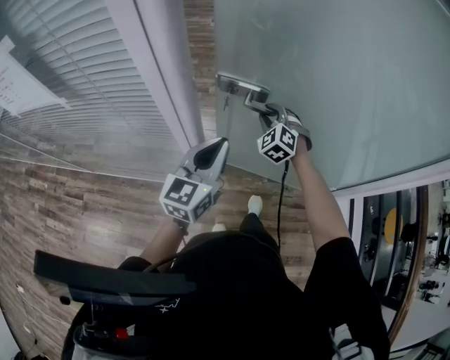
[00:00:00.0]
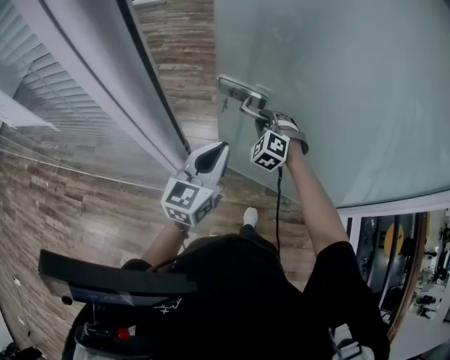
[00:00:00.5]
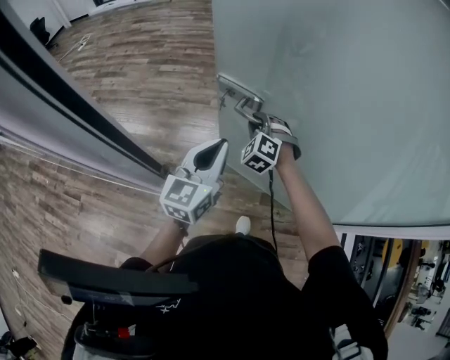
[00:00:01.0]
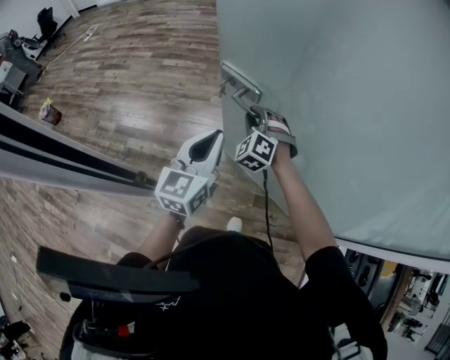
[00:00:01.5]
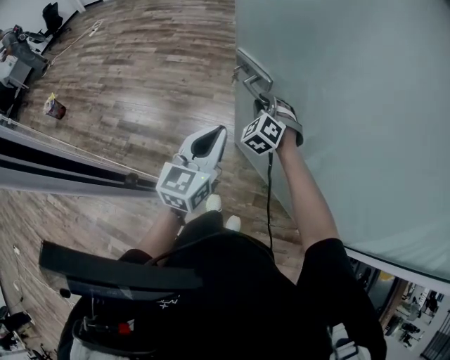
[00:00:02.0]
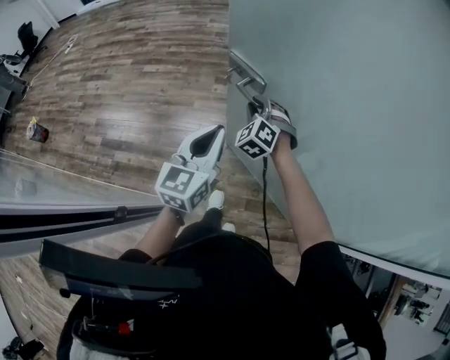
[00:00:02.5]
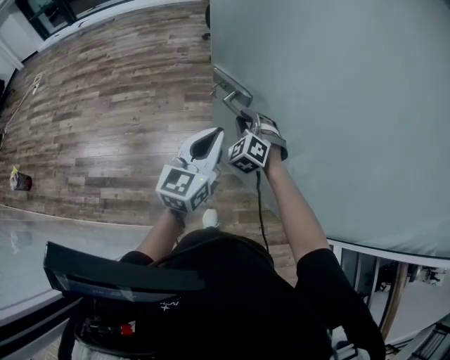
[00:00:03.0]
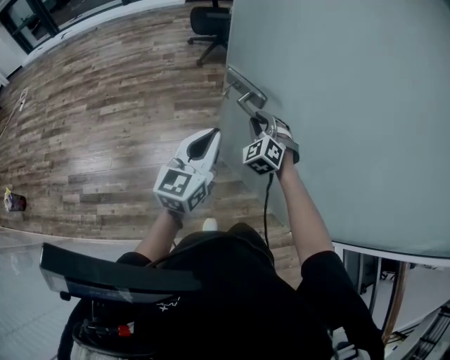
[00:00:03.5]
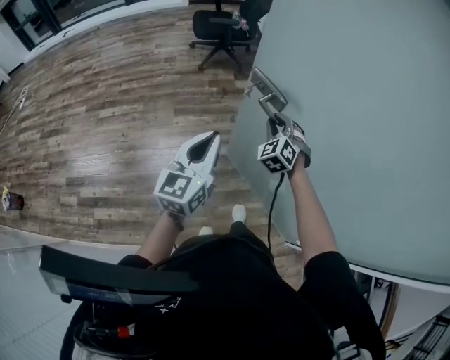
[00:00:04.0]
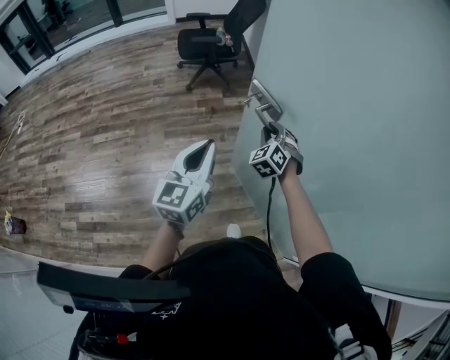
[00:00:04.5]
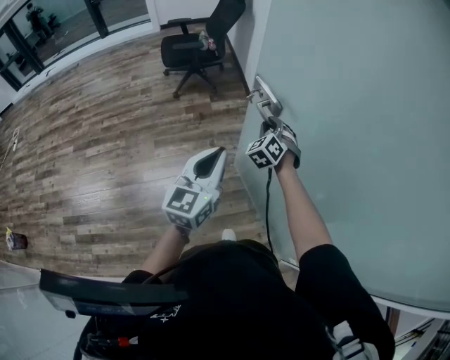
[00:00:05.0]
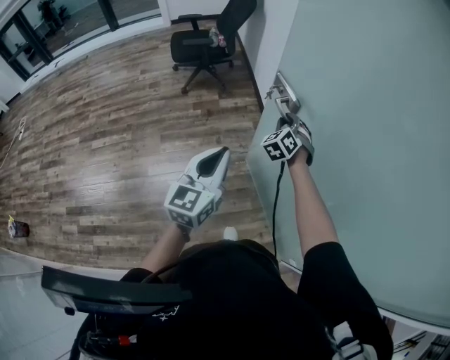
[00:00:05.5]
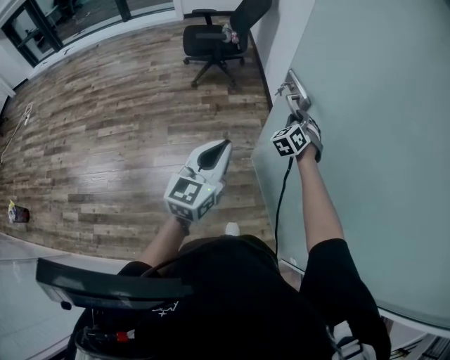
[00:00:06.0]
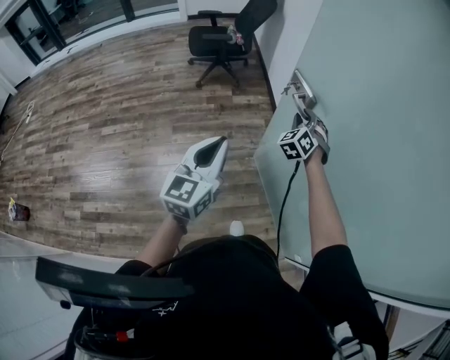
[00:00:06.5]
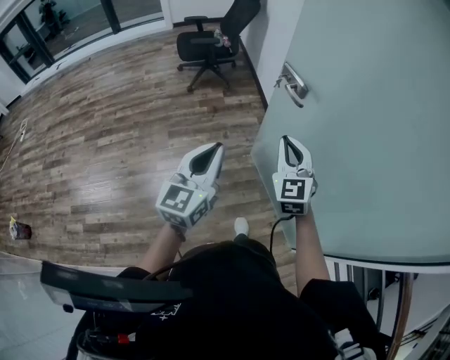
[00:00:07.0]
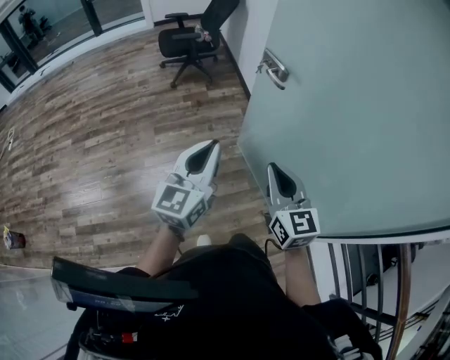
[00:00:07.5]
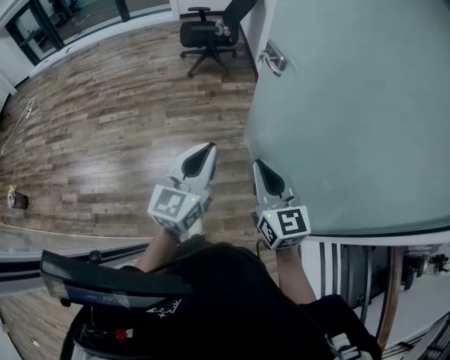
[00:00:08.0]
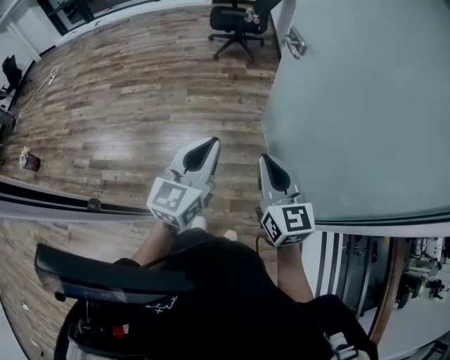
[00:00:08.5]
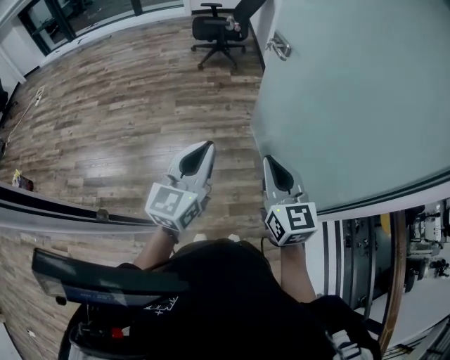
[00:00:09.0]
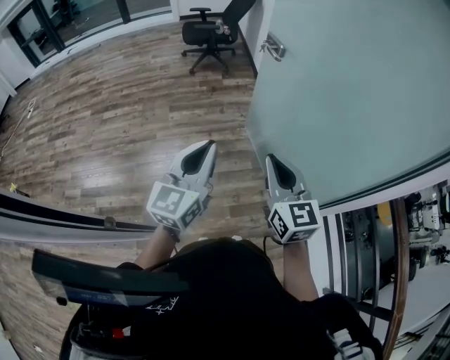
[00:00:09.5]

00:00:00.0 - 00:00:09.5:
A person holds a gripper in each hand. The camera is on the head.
00:00:00.0 - 00:00:02.0: The right gripper heads forward, covering roughly 20 cm. Meanwhile the left gripper shifts some 25 cm forward and to the right.
00:00:02.0 - 00:00:04.0: The left gripper shifts roughly 25 cm forward; the right gripper moves forward and to the right, approximately 25 cm, and rotates some 30 degrees.
00:00:04.0 - 00:00:05.5: The two grippers go about 20 cm forward and to the right.
00:00:05.5 - 00:00:07.5: The right gripper shifts about 40 cm backward, swivels about 60 degrees, and closes its fingers, while the left gripper heads backward, covering some 15 cm.
00:00:07.5 - 00:00:09.5: Both grippers travel together backward, some 20 cm.

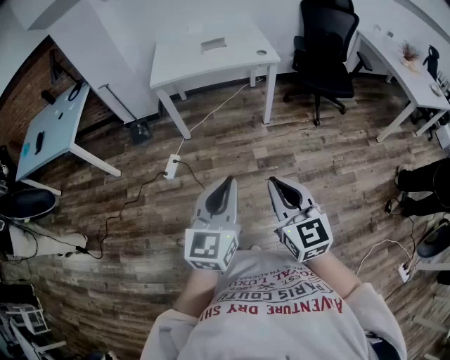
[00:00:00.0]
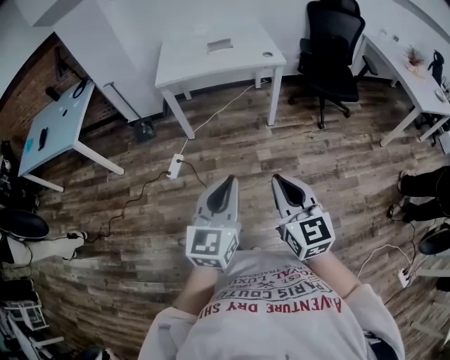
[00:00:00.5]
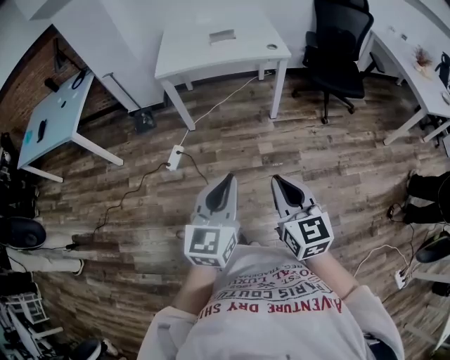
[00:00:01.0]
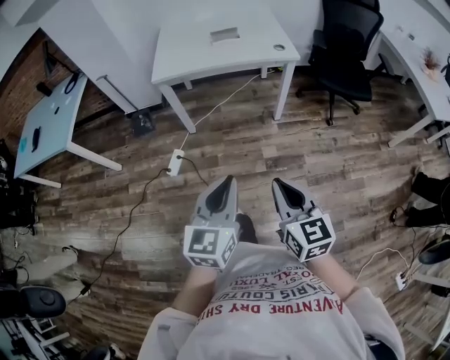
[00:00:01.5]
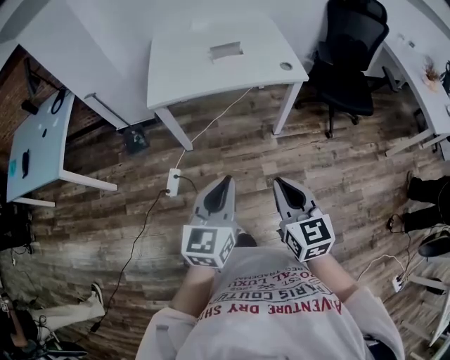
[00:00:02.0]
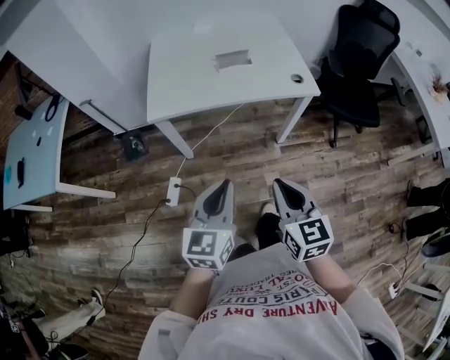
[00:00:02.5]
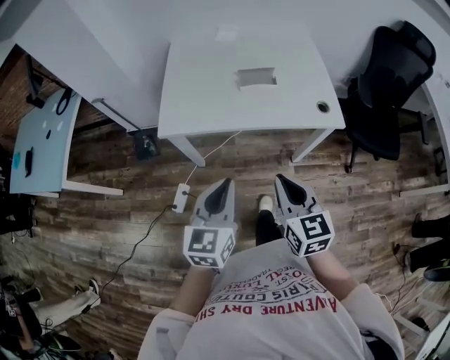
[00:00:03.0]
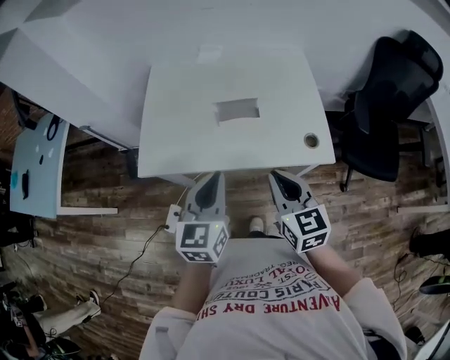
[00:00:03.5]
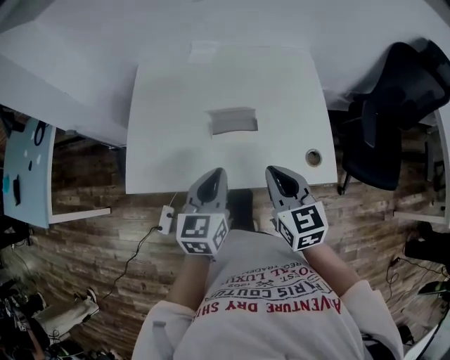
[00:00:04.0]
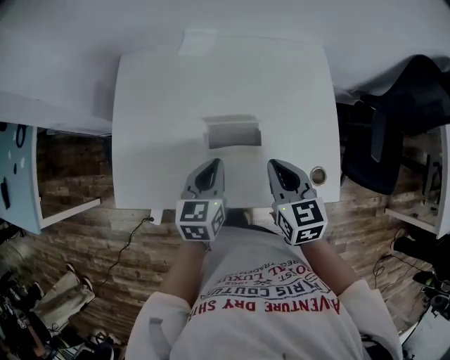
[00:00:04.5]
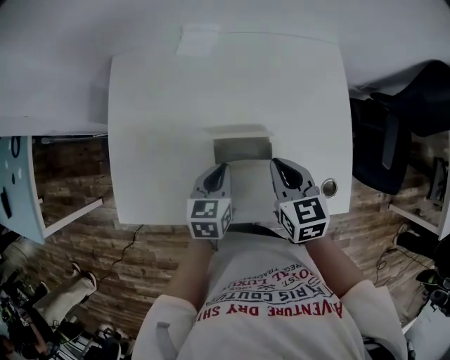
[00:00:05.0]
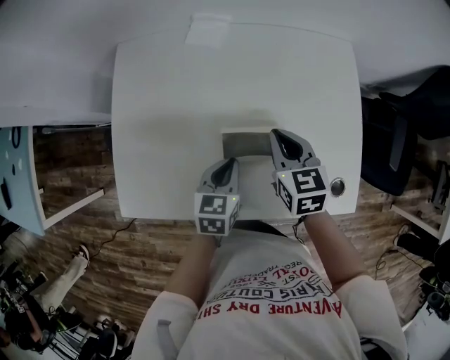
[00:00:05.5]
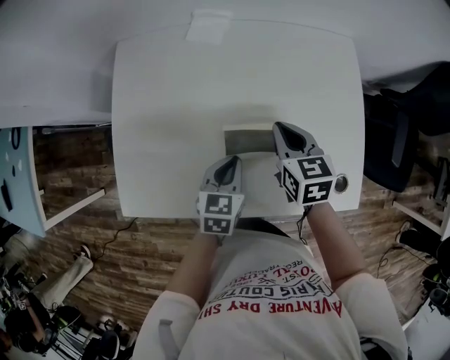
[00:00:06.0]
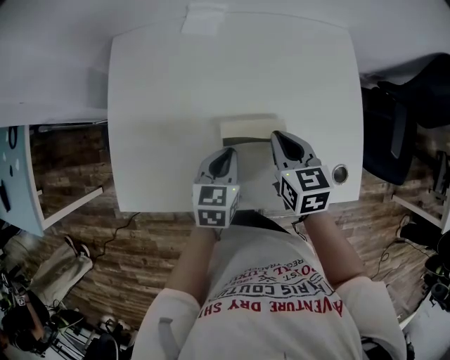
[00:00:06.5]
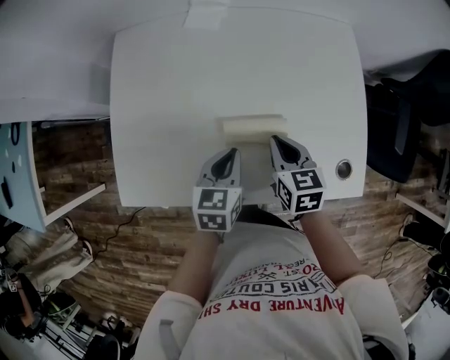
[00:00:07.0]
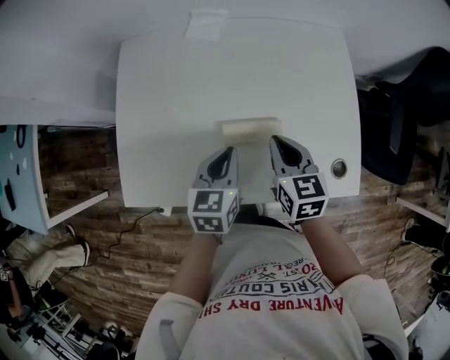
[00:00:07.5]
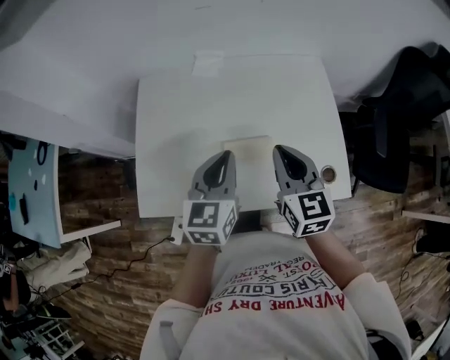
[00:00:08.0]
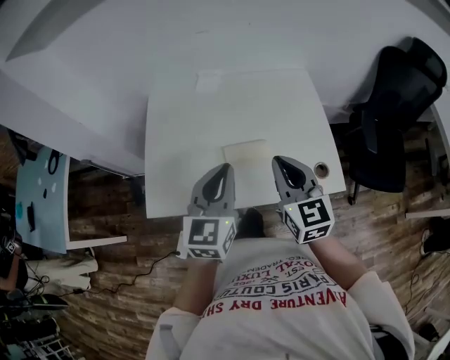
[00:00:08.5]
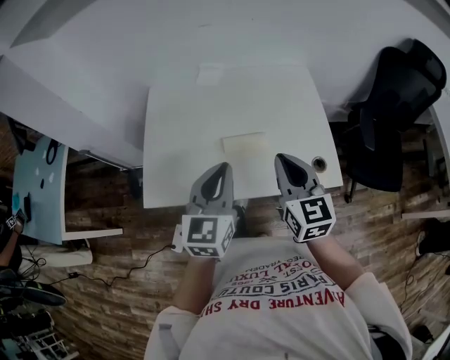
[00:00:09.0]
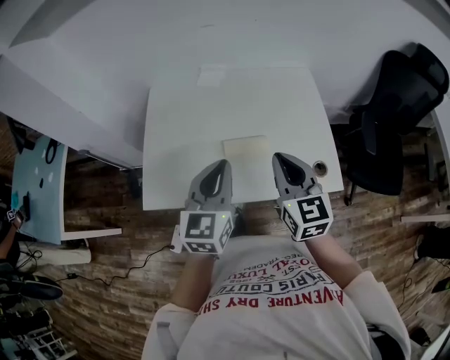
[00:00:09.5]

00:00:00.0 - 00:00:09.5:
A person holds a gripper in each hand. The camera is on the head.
00:00:00.0 - 00:00:02.0: Both grippers move forward, about 30 cm.
00:00:02.0 - 00:00:04.0: The pair of grippers is taken forward, some 50 cm.
00:00:04.0 - 00:00:05.5: The right gripper goes approximately 25 cm forward and downward, while the left gripper heads downward and forward, covering roughly 20 cm, and turns by approximately 20 degrees.
00:00:05.5 - 00:00:07.5: The left gripper moves upward, roughly 5 cm; the right gripper goes some 5 cm backward.
00:00:07.5 - 00:00:09.5: The right gripper heads upward and backward, covering approximately 20 cm, and turns by some 20 degrees. The left gripper goes roughly 20 cm upward, and changes its angle by some 30 degrees.

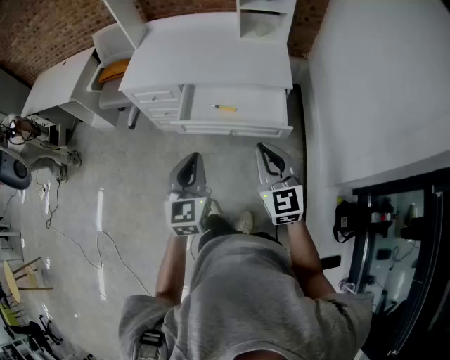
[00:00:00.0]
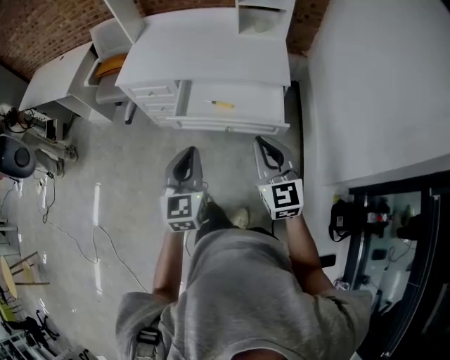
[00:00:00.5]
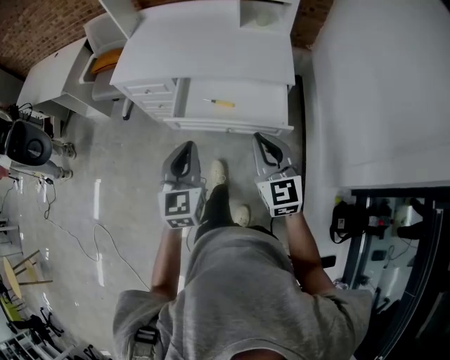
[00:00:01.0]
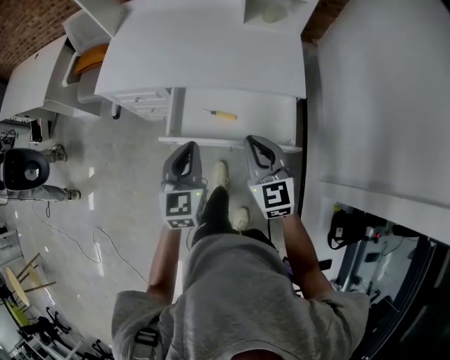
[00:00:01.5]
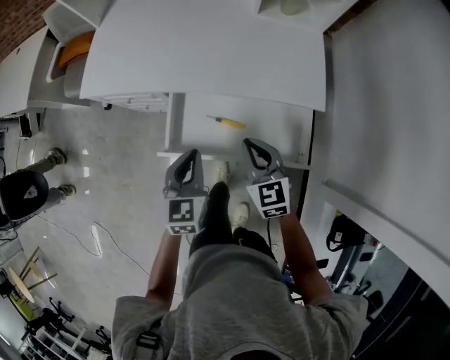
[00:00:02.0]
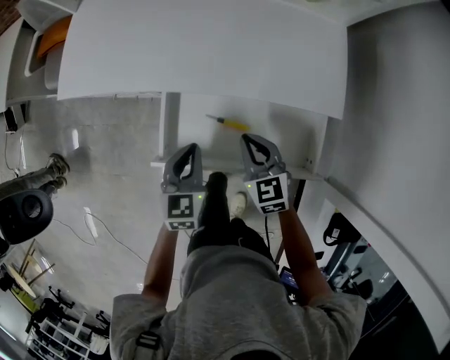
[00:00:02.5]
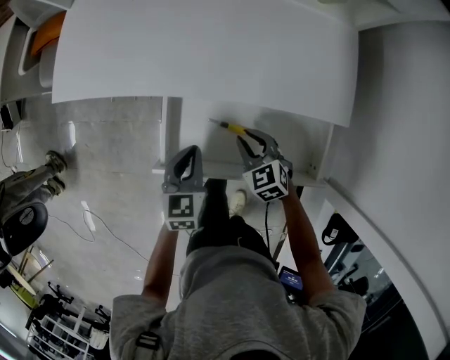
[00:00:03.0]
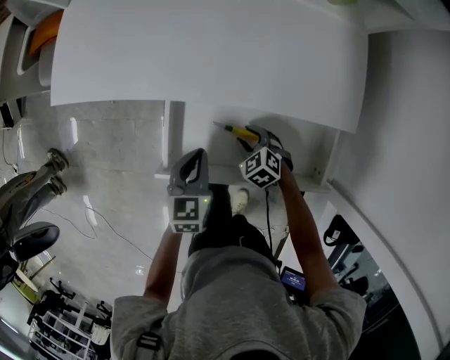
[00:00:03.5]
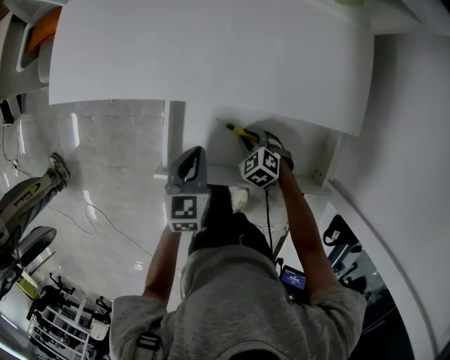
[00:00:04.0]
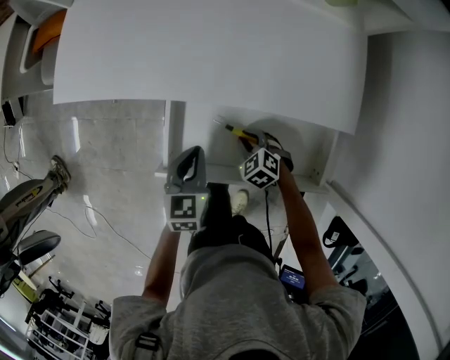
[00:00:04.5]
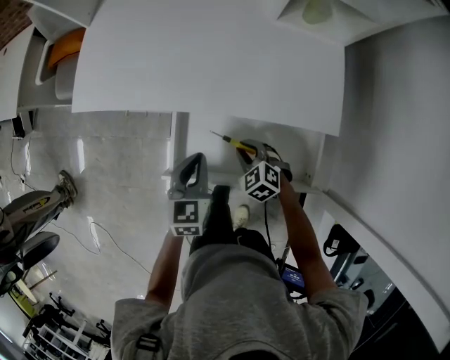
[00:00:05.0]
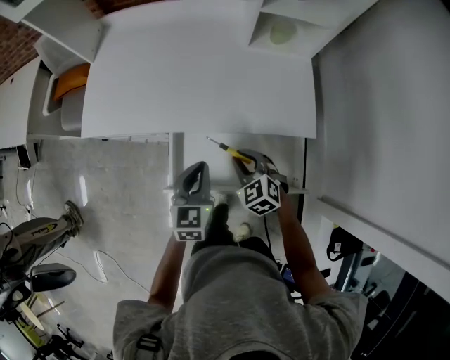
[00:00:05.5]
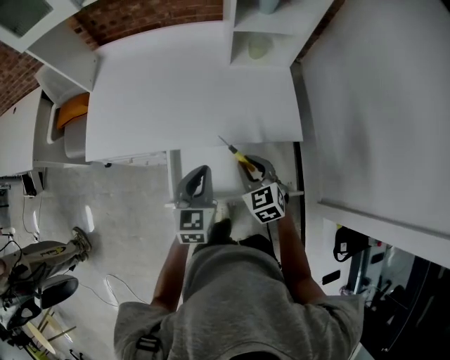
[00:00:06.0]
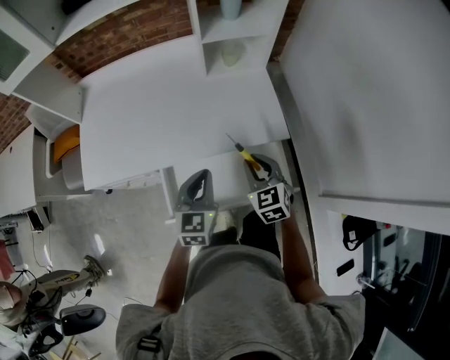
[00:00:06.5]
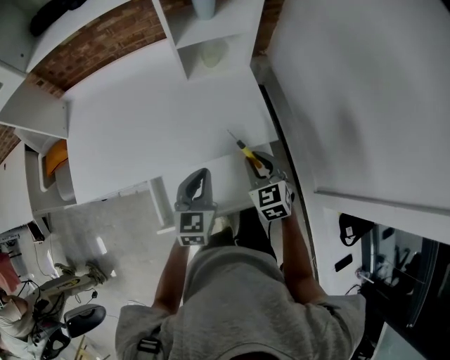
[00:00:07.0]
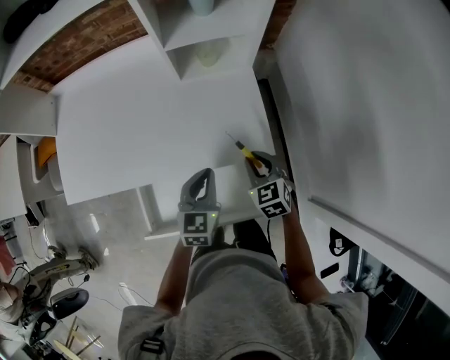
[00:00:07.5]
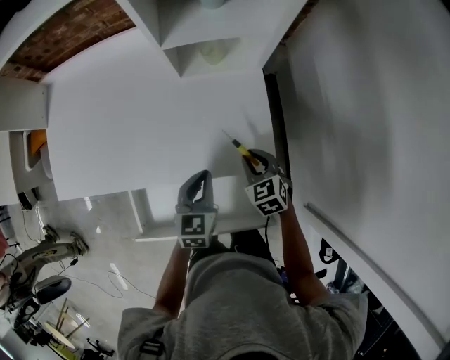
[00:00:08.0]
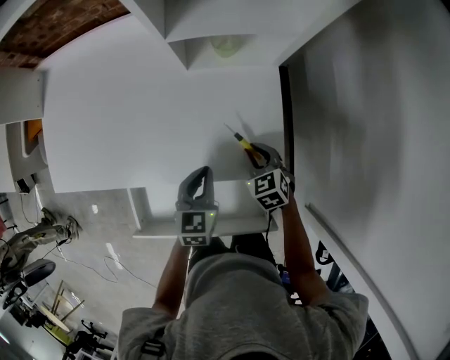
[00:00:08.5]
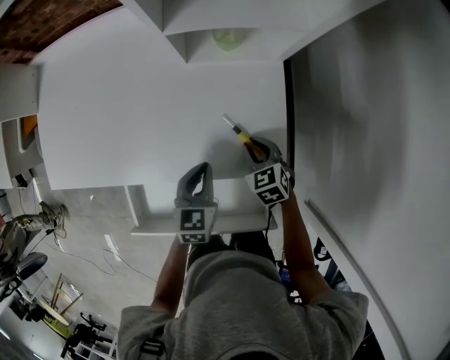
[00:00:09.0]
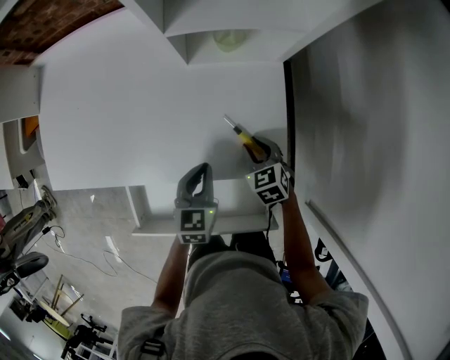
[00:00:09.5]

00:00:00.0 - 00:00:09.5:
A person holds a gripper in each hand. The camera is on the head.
00:00:00.0 - 00:00:02.0: The grippers both shift forward and downward by some 40 cm. The right gripper swivels some 20 degrees.
00:00:02.0 - 00:00:04.0: The left gripper is displaced downward and forward by roughly 20 cm, while the right gripper moves downward, some 30 cm, and angles its fingers downward, by roughly 40 degrees.
00:00:04.0 - 00:00:05.5: The grippers both shift upward by about 20 cm. The right gripper rotates roughly 20 degrees.
00:00:05.5 - 00:00:07.5: Both grippers travel together to the right and forward, approximately 25 cm. The right gripper changes its angle by some 30 degrees.
00:00:07.5 - 00:00:09.5: Both grippers move downward and forward, some 15 cm.
